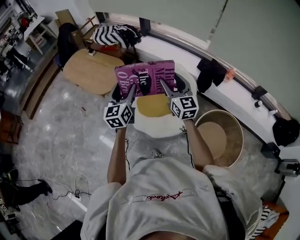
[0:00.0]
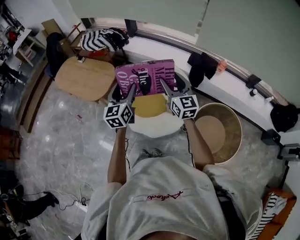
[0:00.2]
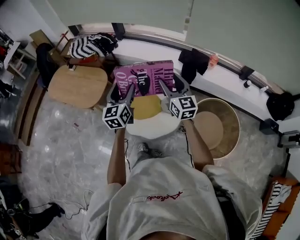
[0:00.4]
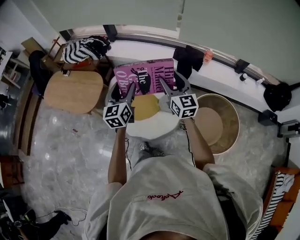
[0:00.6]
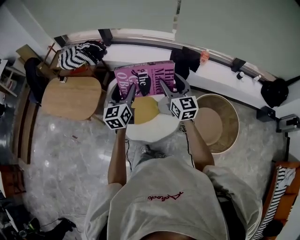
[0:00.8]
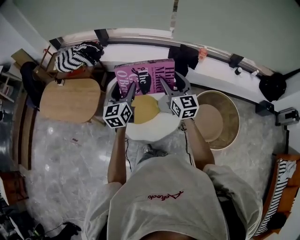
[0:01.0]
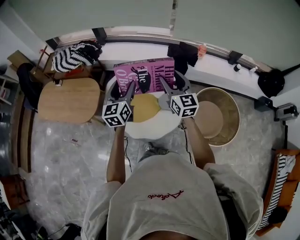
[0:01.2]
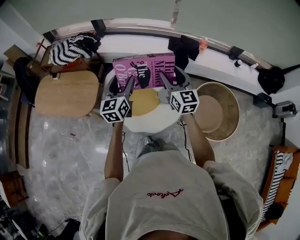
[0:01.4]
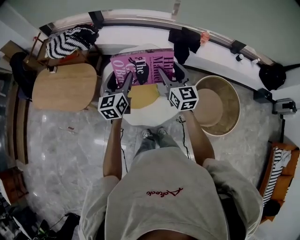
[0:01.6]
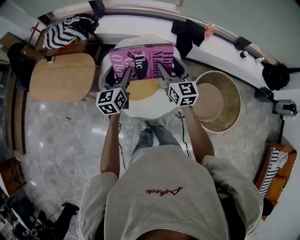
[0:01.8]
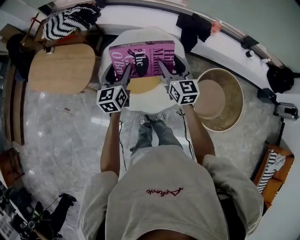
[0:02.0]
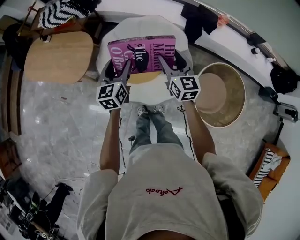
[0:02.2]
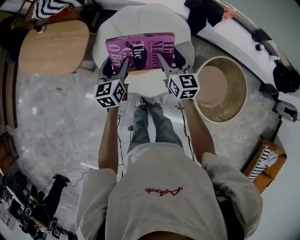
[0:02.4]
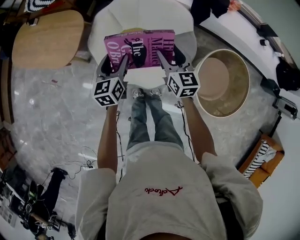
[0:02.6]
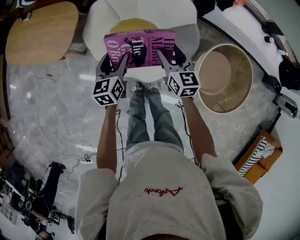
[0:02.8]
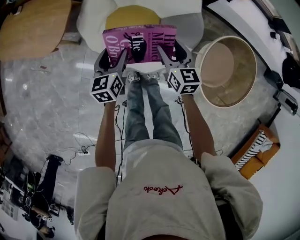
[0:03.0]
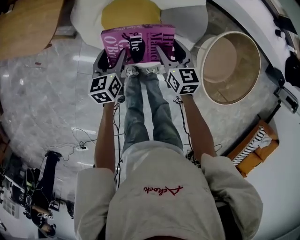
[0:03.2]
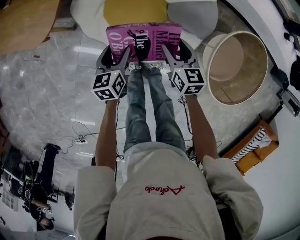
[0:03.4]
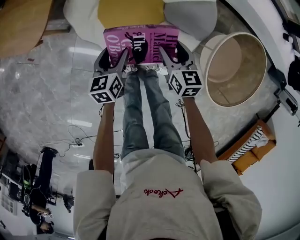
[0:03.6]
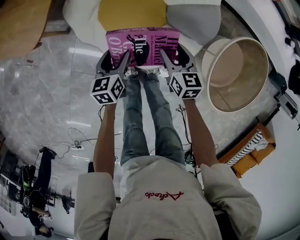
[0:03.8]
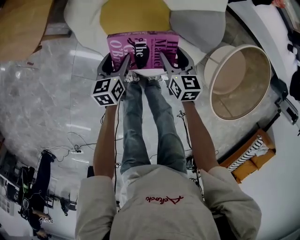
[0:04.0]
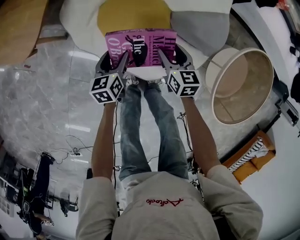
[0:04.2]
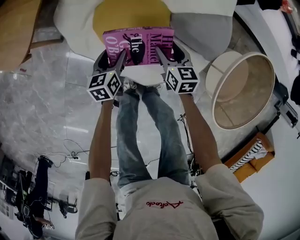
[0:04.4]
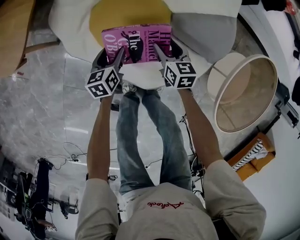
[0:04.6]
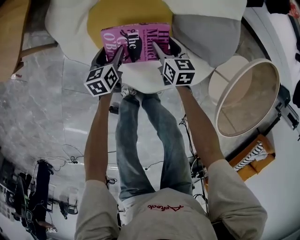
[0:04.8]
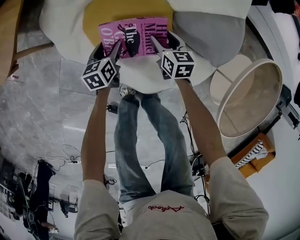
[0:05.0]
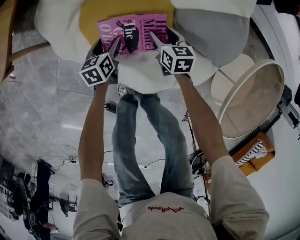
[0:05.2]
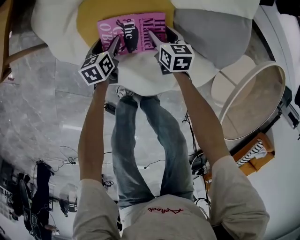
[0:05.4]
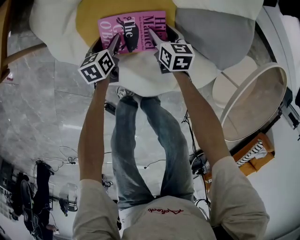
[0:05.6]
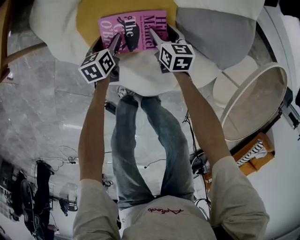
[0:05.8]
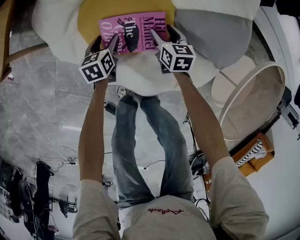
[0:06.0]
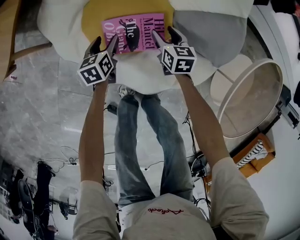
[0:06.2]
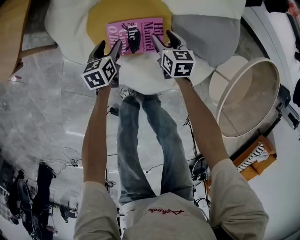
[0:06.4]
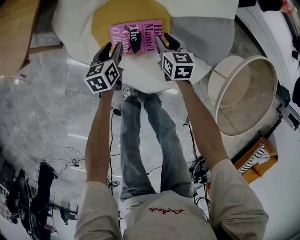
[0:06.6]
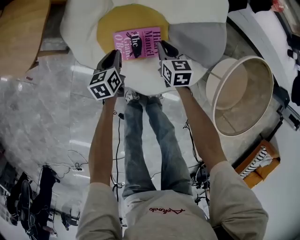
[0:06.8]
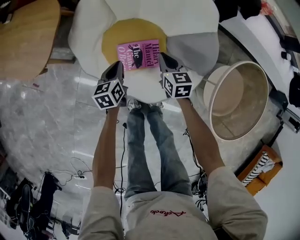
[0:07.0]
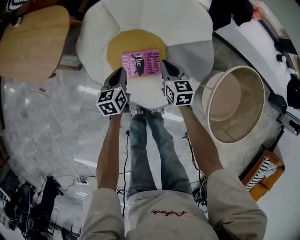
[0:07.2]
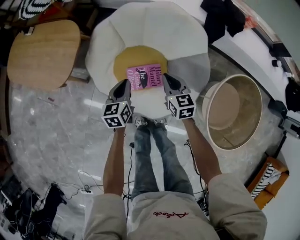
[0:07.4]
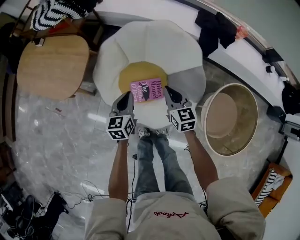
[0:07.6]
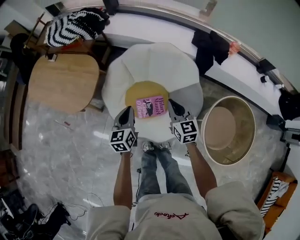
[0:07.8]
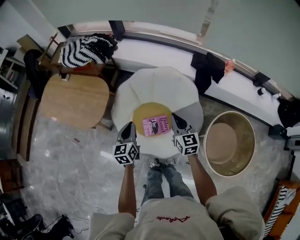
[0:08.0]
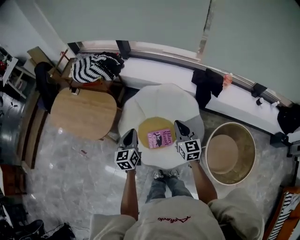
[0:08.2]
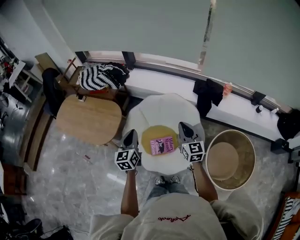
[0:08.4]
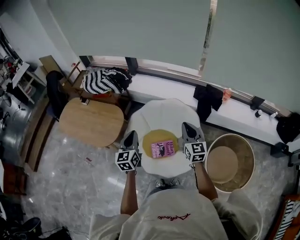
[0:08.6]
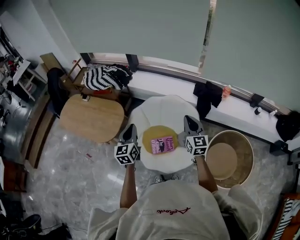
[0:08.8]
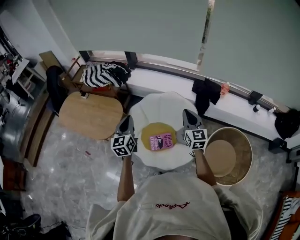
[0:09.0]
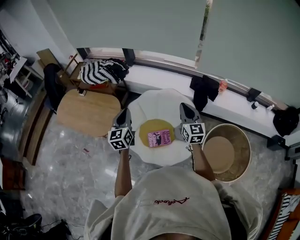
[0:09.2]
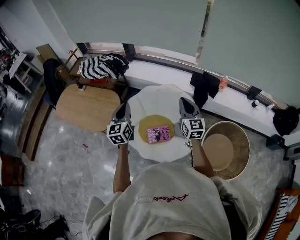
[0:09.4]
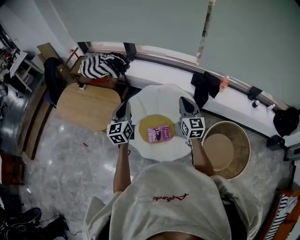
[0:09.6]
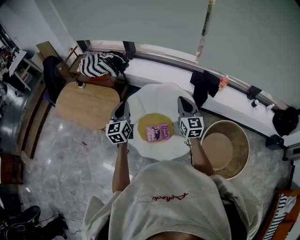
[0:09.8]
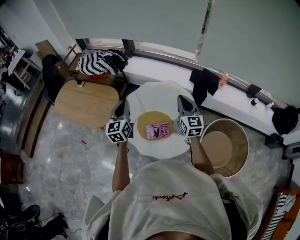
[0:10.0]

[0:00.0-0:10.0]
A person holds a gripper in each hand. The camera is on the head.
0.0 to 1.4 s: The left gripper travels forward by about 15 cm, and rotates approximately 20 degrees, while the right gripper goes approximately 5 cm forward, and changes its angle by some 20 degrees.
1.4 to 2.8 s: Both grippers move downward, approximately 30 cm. The left gripper changes its angle by some 30 degrees; the right gripper swivels roughly 30 degrees.
2.8 to 4.2 s: The two grippers go some 30 cm downward.
4.2 to 5.8 s: The grippers both shift downward by some 25 cm.
5.8 to 7.2 s: Both grippers move upward, roughly 30 cm. The right gripper closes; the left gripper closes its fingers.
7.2 to 8.6 s: Both grippers travel together upward, roughly 50 cm. The left gripper turns by some 30 degrees; the right gripper rotates some 30 degrees.
8.6 to 10.0 s: The left gripper heads upward, covering some 5 cm.

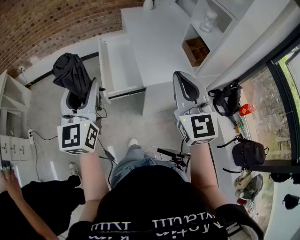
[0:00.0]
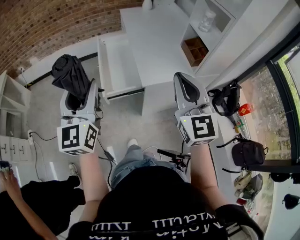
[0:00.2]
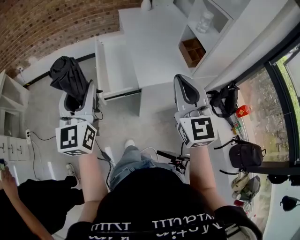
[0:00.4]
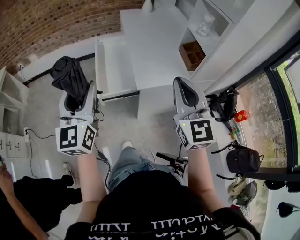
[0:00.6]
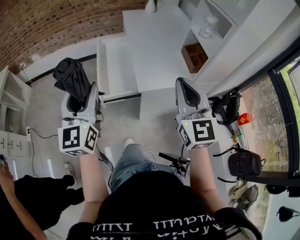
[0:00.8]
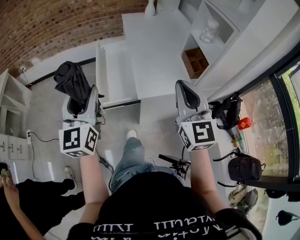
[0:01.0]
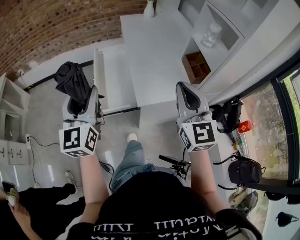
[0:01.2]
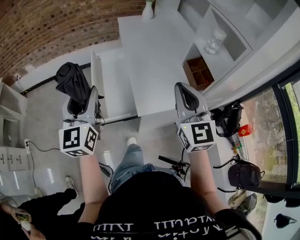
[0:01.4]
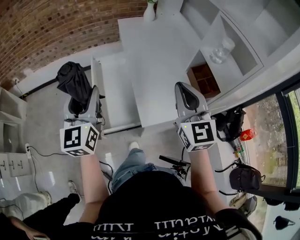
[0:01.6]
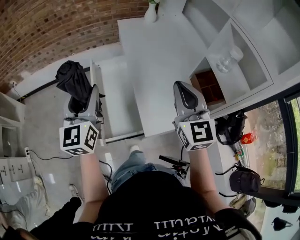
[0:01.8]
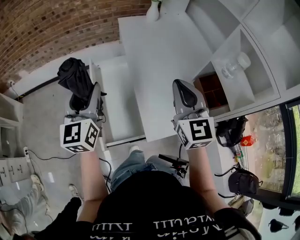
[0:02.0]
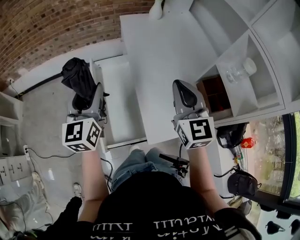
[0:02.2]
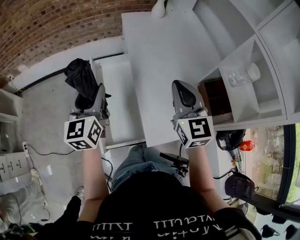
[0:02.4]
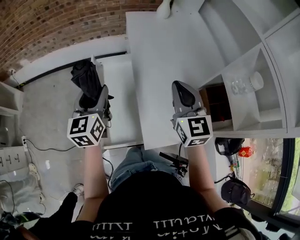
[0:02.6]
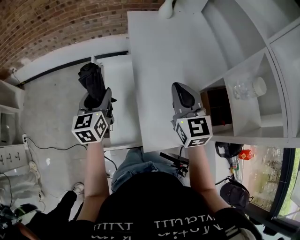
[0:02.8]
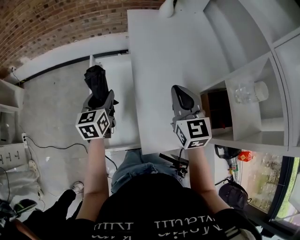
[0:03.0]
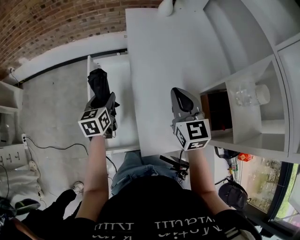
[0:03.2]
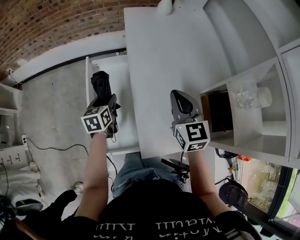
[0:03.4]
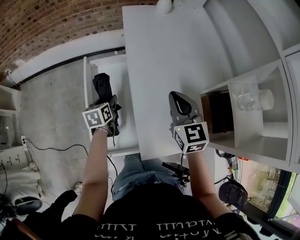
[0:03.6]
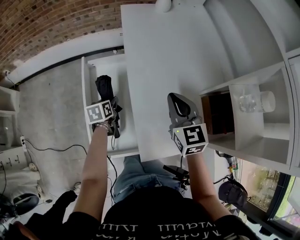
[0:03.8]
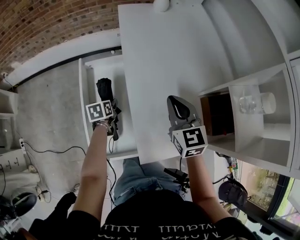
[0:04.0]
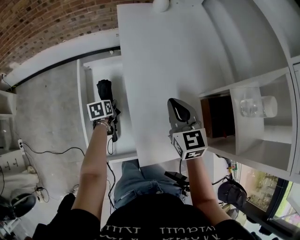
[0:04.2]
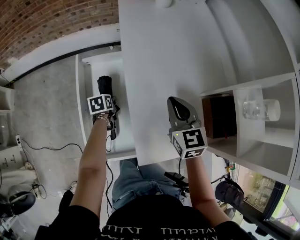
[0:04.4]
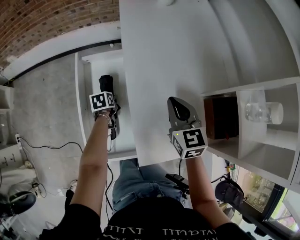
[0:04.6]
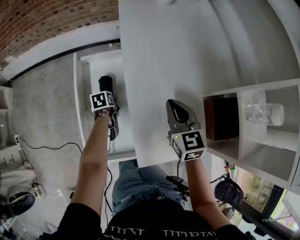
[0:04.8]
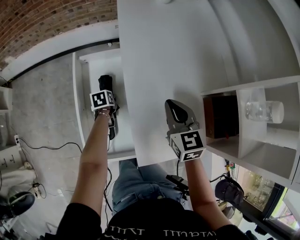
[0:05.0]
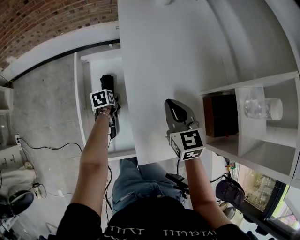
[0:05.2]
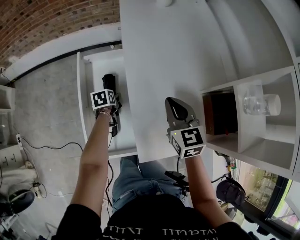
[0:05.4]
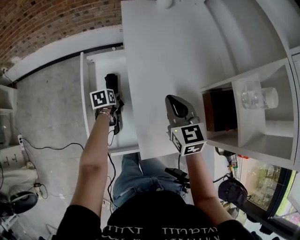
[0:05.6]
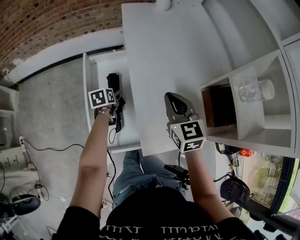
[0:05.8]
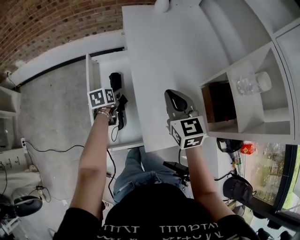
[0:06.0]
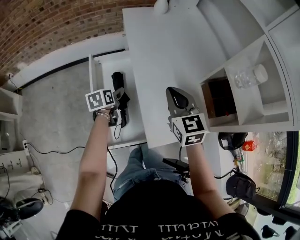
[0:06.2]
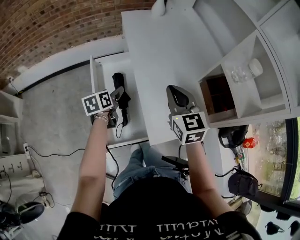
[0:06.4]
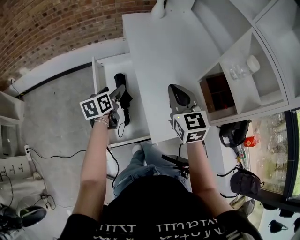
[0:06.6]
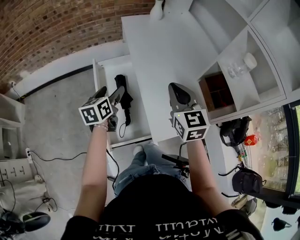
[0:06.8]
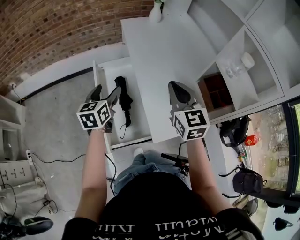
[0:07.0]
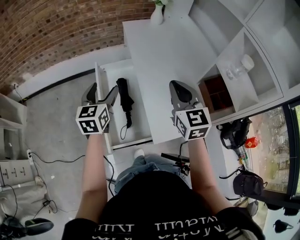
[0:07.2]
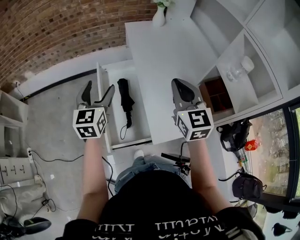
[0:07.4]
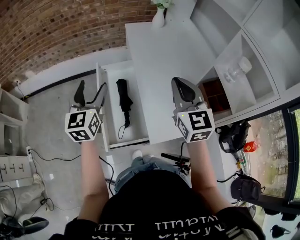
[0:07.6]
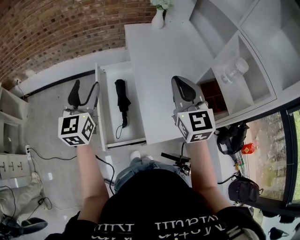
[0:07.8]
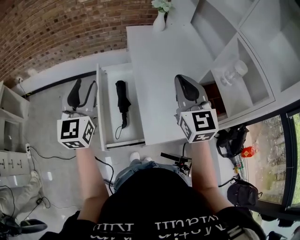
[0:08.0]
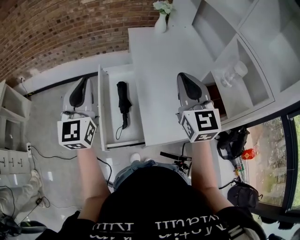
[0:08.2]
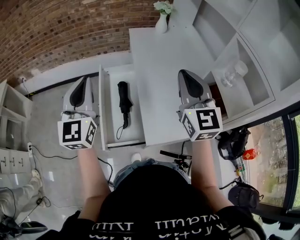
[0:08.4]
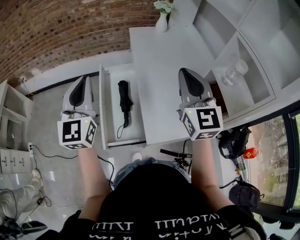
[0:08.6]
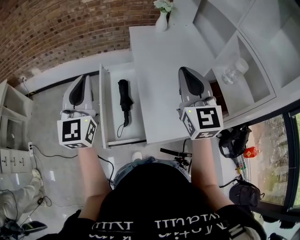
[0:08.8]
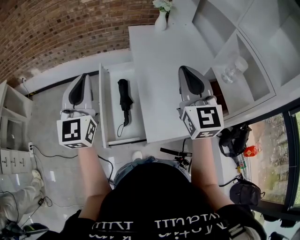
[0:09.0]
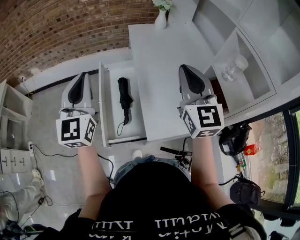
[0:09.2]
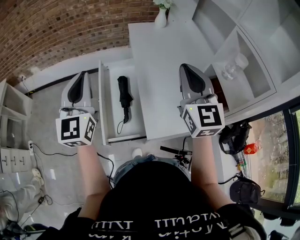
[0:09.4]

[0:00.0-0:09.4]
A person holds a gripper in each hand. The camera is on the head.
0.0 to 1.6 s: The two grippers go roughly 20 cm forward.
1.6 to 3.2 s: The left gripper heads downward and forward, covering approximately 30 cm, and tilts its fingers about 30 degrees downward; the right gripper shifts some 25 cm forward and downward.
3.2 to 4.8 s: The left gripper heads downward, covering roughly 25 cm, and tilts its fingers roughly 30 degrees downward. Meanwhile the right gripper shifts some 10 cm downward.
4.8 to 6.2 s: The left gripper heads upward, covering about 15 cm, and swivels about 20 degrees, while the right gripper heads upward and backward, covering approximately 10 cm.
6.2 to 7.8 s: The left gripper is displaced upward by roughly 30 cm, and tips its fingers upward by roughly 40 degrees. Meanwhile the right gripper is displaced upward by some 15 cm.
7.8 to 9.4 s: Both grippers travel together upward, approximately 5 cm. The left gripper closes its fingers.

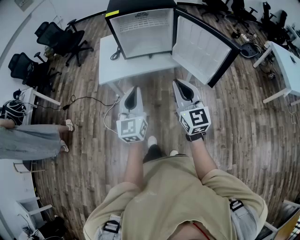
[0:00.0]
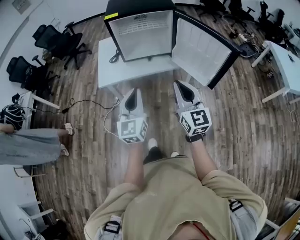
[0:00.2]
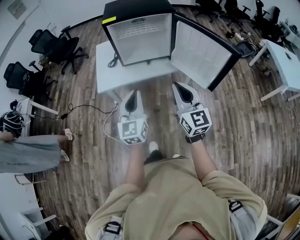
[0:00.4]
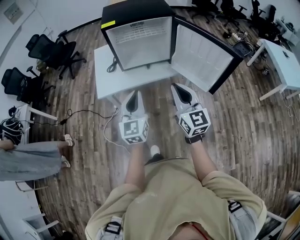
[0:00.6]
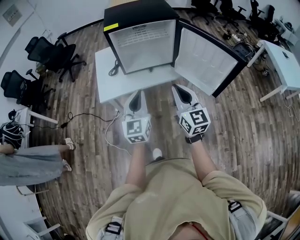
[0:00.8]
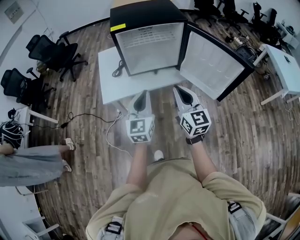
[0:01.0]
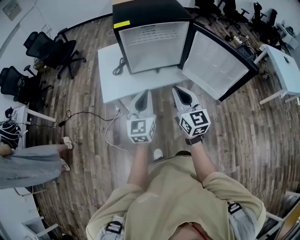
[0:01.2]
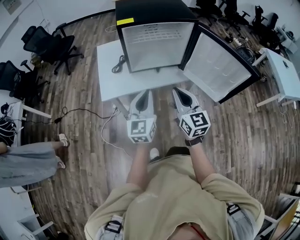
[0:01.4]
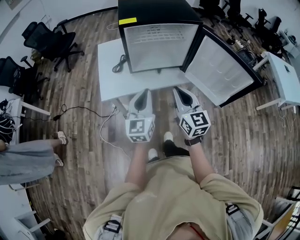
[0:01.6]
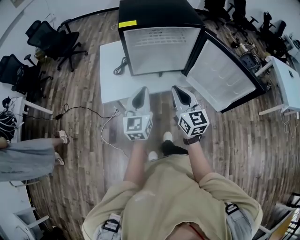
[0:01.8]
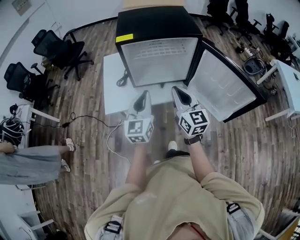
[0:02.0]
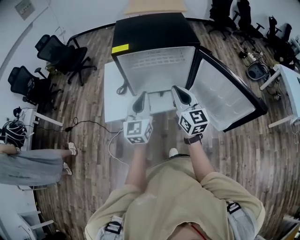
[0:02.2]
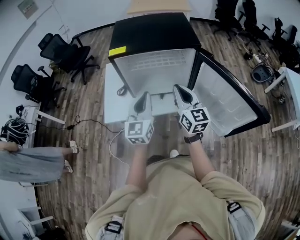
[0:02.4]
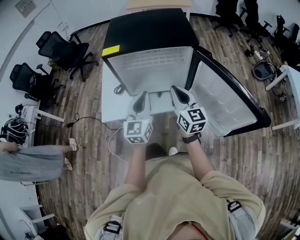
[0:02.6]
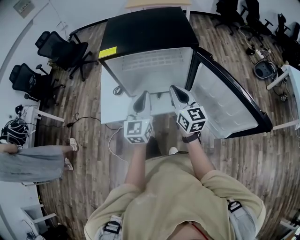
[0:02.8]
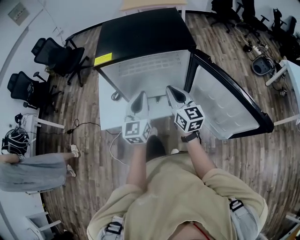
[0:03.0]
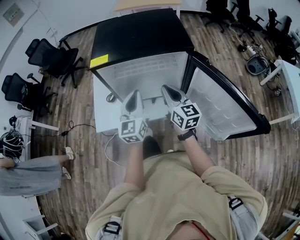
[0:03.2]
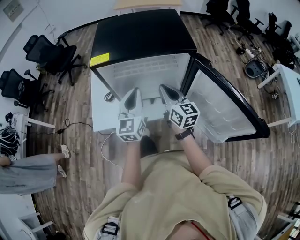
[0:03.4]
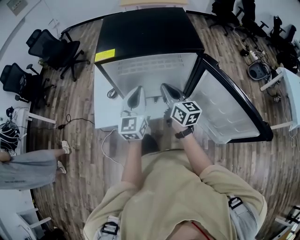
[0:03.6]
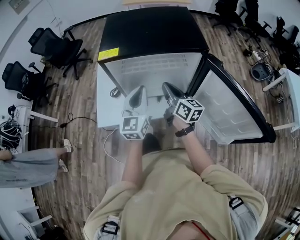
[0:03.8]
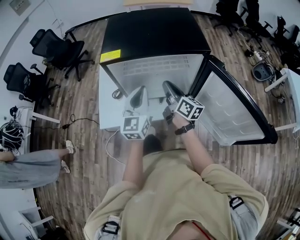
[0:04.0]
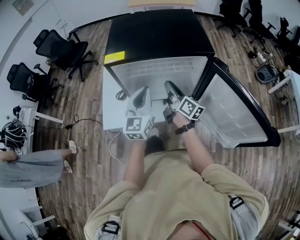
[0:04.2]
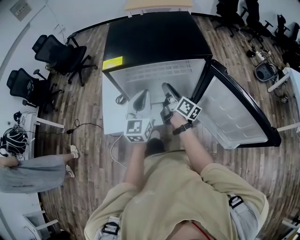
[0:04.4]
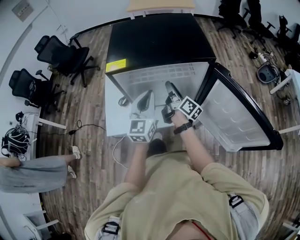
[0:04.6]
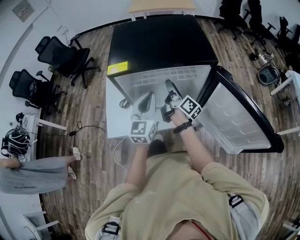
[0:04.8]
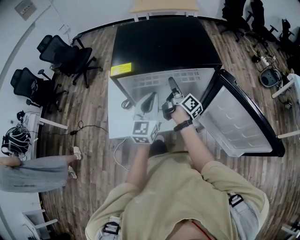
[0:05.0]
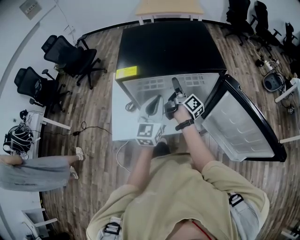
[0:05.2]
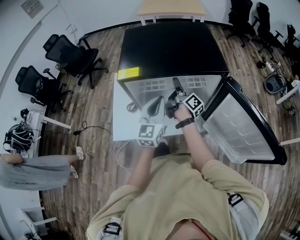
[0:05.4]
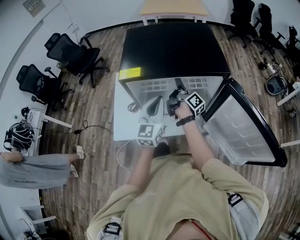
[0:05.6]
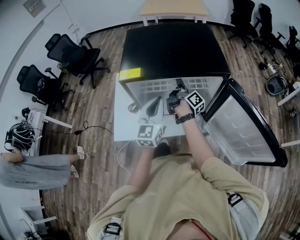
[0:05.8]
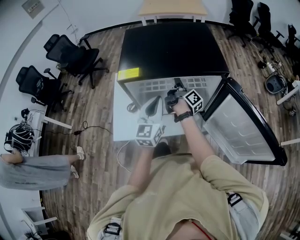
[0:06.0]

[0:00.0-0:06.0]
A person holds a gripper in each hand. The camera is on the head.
0.0 to 1.6 s: Both grippers move forward and to the left, about 20 cm.
1.6 to 3.0 s: Both grippers move forward and to the right, approximately 25 cm.
3.0 to 4.4 s: The right gripper is displaced forward and downward by approximately 10 cm, rolls clockwise, seen from behind, by approximately 50 degrees, and opens its fingers. Meanwhile the left gripper moves forward, roughly 5 cm.
4.4 to 6.0 s: The right gripper shifts some 10 cm forward, rotates about 30 degrees, and opens and closes again.
